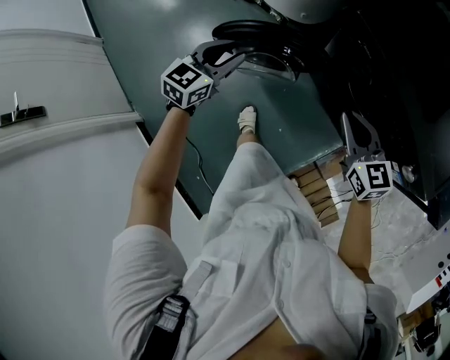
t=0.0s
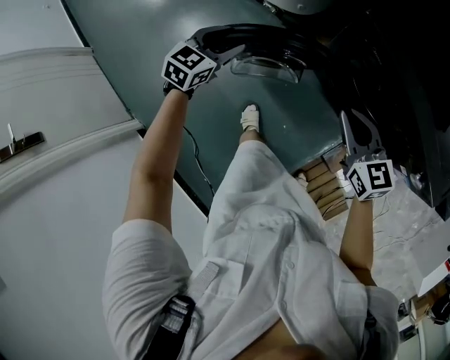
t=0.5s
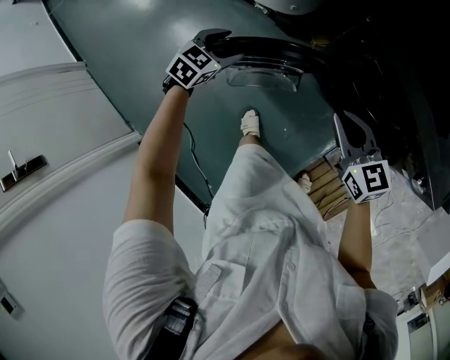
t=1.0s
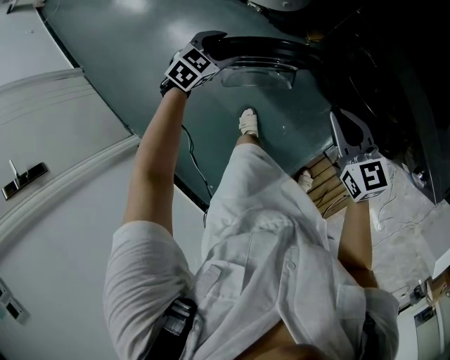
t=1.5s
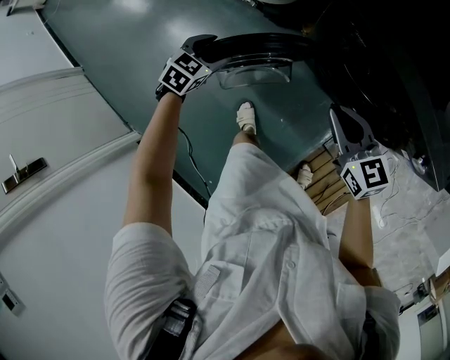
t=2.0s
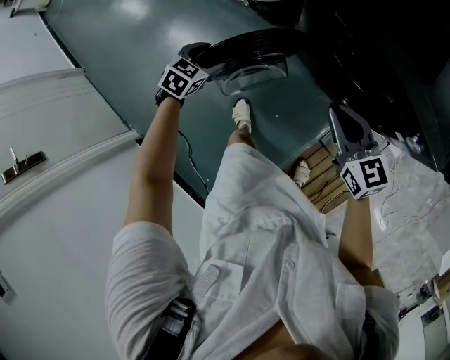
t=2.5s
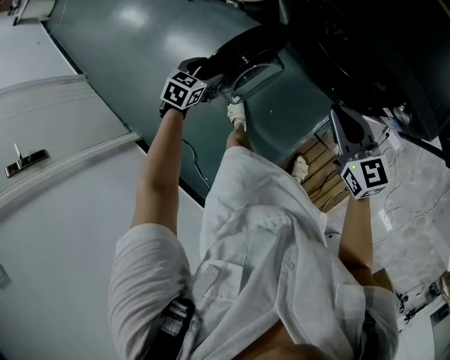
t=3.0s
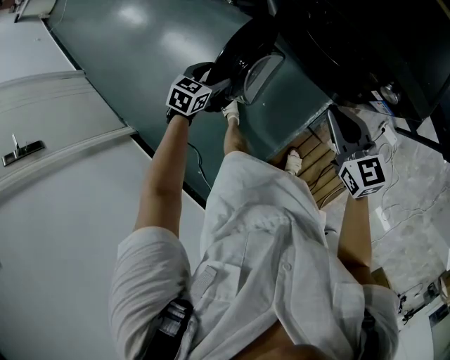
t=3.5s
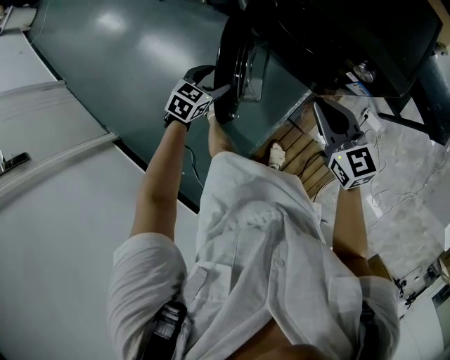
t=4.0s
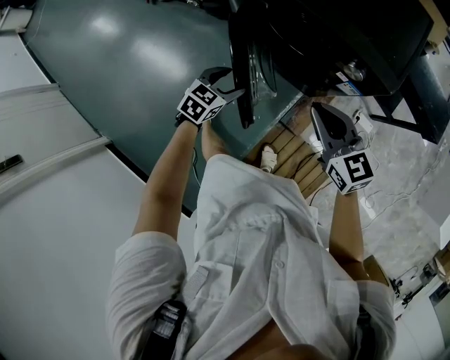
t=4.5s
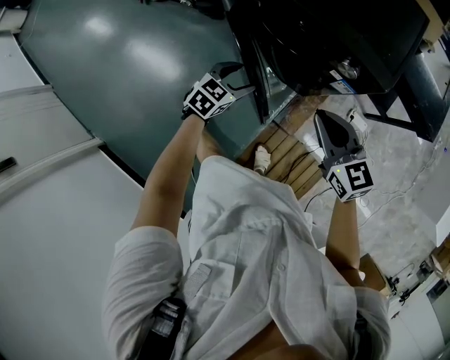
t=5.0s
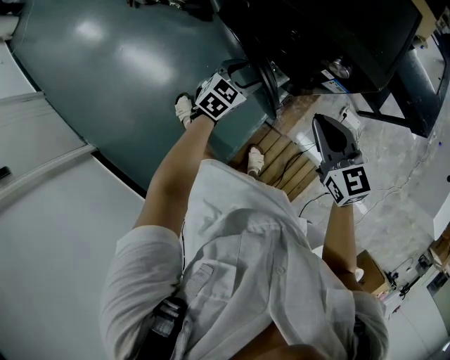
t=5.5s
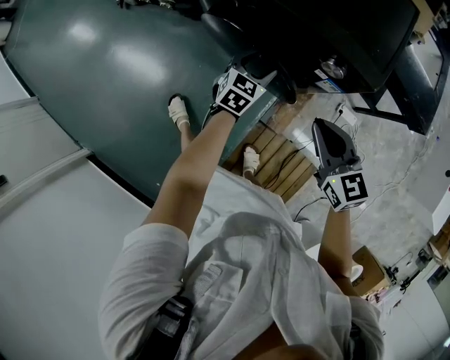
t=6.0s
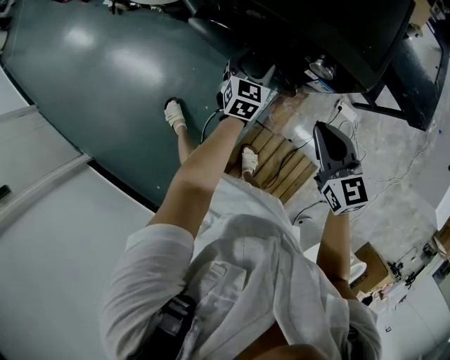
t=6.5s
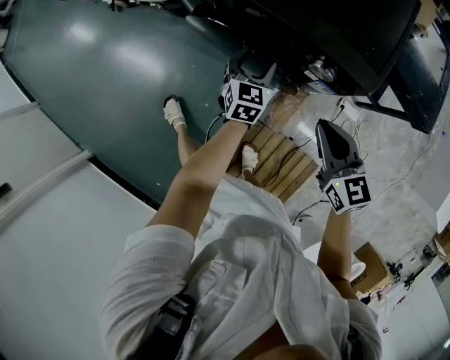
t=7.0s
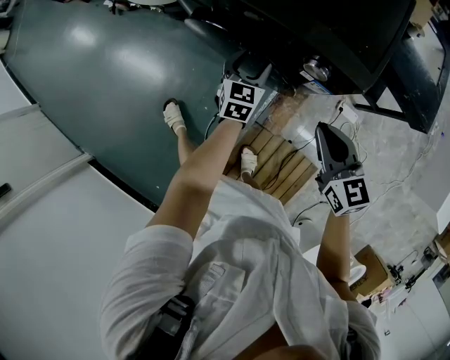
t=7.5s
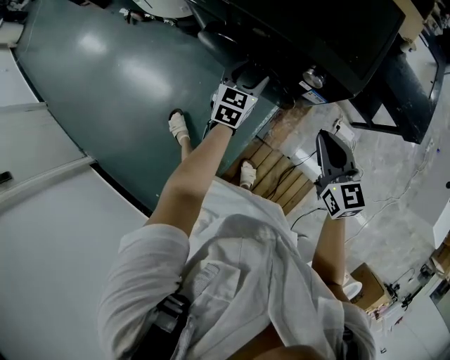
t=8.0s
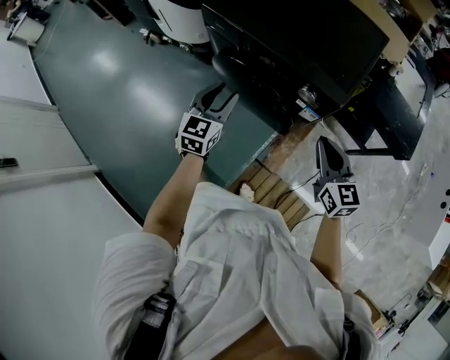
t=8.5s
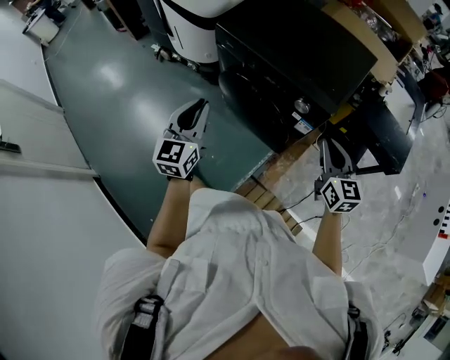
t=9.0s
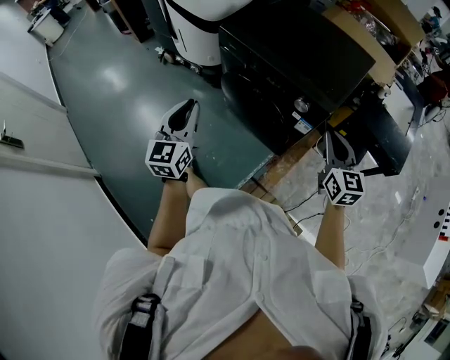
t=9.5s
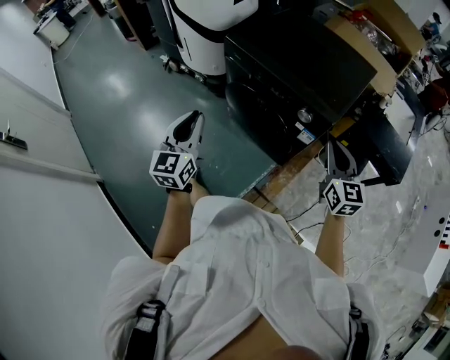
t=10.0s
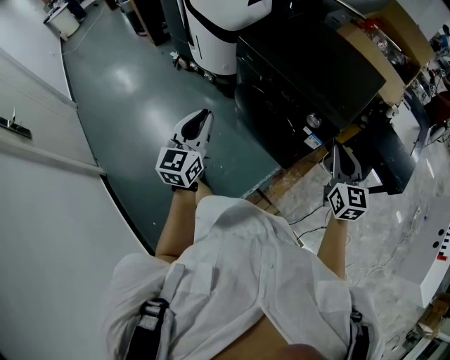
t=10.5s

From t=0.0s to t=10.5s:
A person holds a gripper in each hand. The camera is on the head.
From t=0.0s to t=2.0s: The left gripper moves downward and forward, some 15 cm, turns by about 30 degrees, and opens.
From t=2.0s to t=4.0s: Both grippers move to the right and backward, approximately 30 cm.
From t=4.0s to t=6.5s: The right gripper is displaced to the right by approximately 15 cm. The left gripper moves to the right and forward, about 30 cm, and rotates about 20 degrees.
From t=6.5s to t=8.5s: The left gripper is displaced upward, to the left and backward by some 25 cm, and closes its fingers; the right gripper is displaced upward by some 5 cm.
From t=8.5s to t=10.5s: The right gripper moves upward, about 10 cm; the left gripper moves upward, backward and to the left, about 20 cm, changes its angle by about 20 degrees, and closes its fingers.

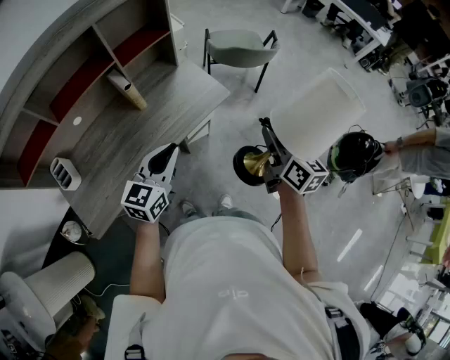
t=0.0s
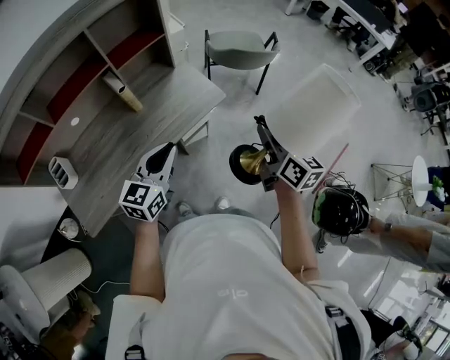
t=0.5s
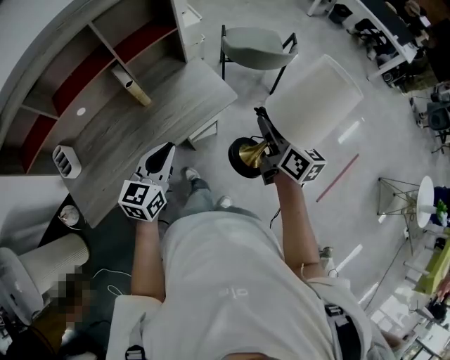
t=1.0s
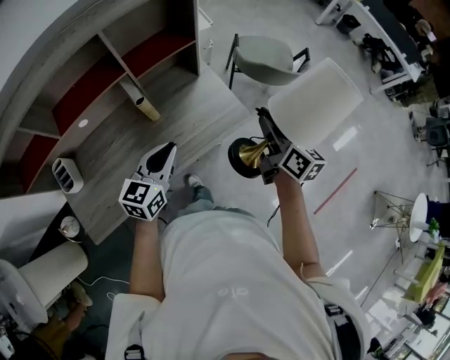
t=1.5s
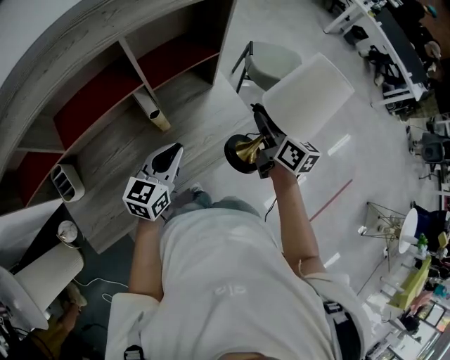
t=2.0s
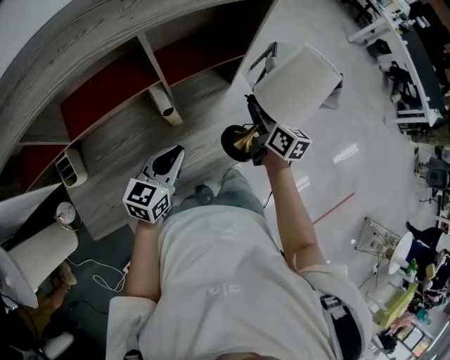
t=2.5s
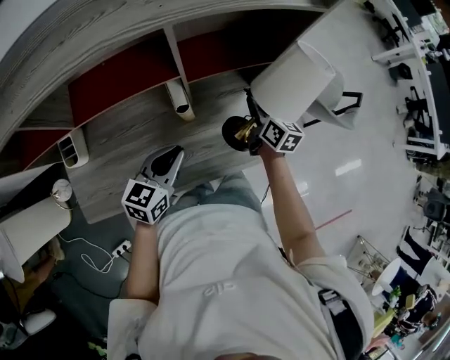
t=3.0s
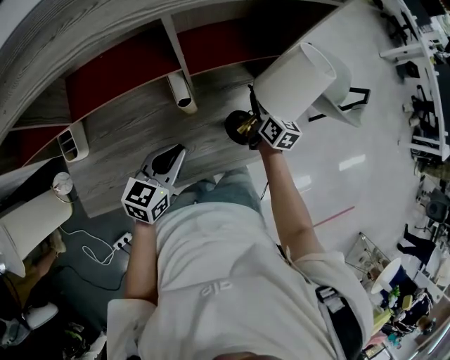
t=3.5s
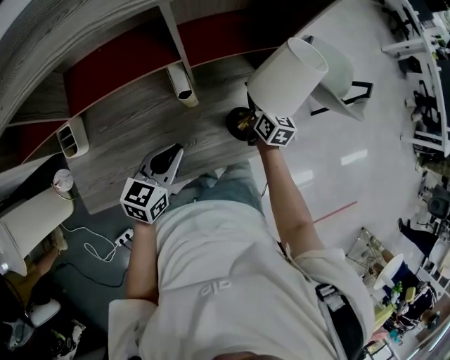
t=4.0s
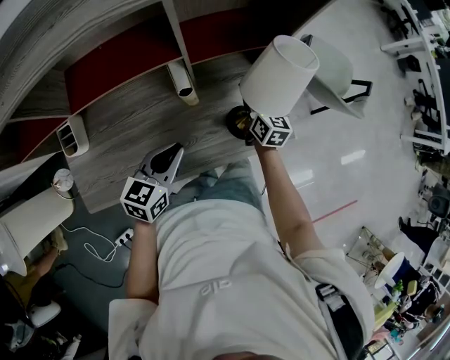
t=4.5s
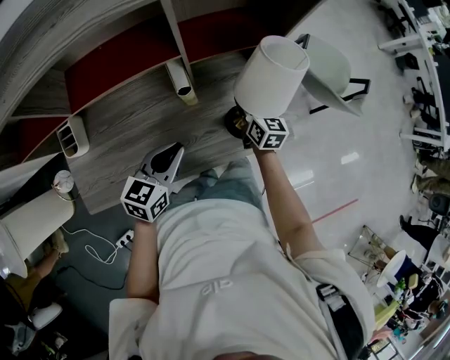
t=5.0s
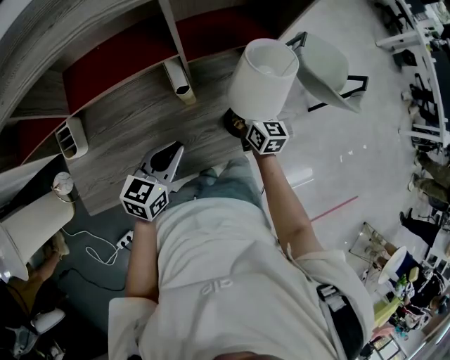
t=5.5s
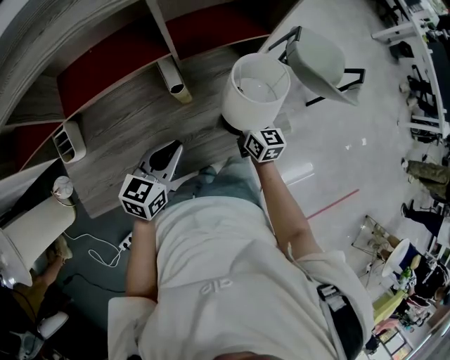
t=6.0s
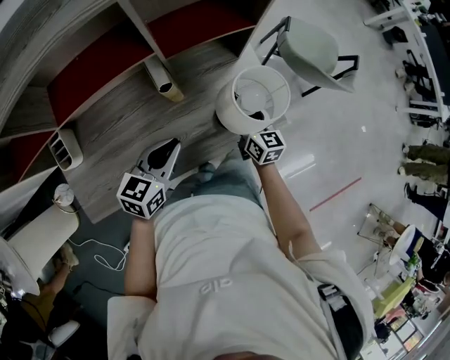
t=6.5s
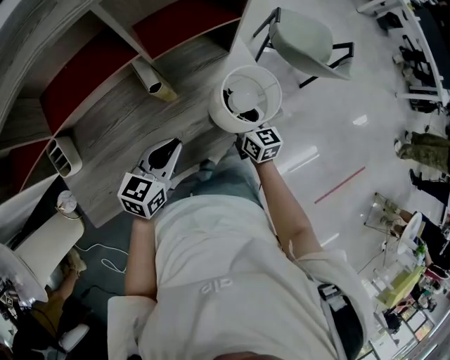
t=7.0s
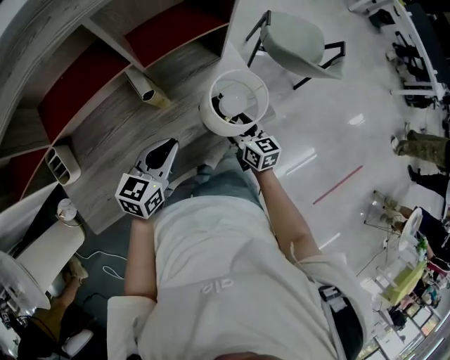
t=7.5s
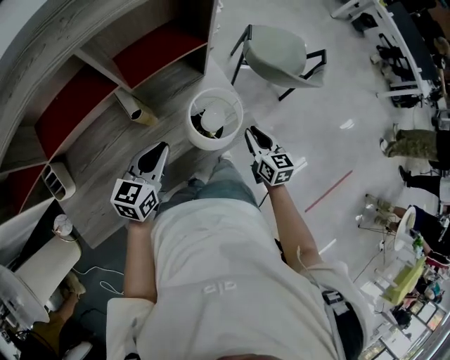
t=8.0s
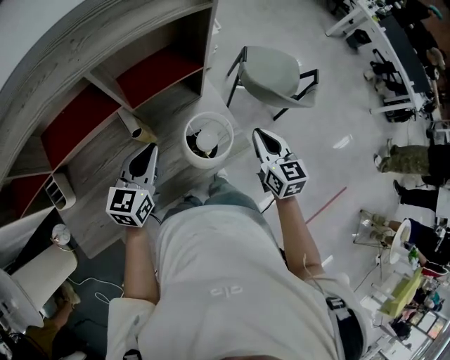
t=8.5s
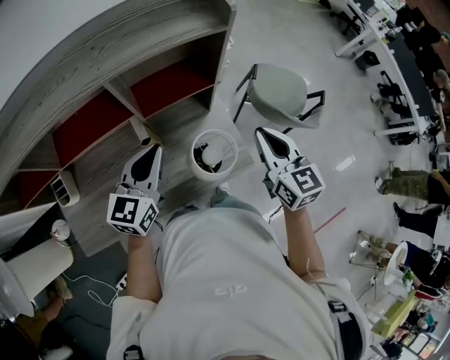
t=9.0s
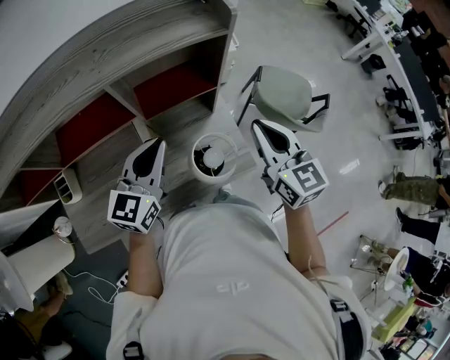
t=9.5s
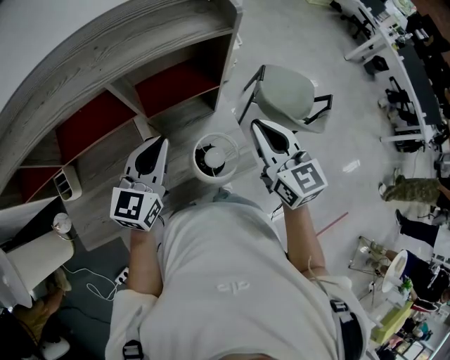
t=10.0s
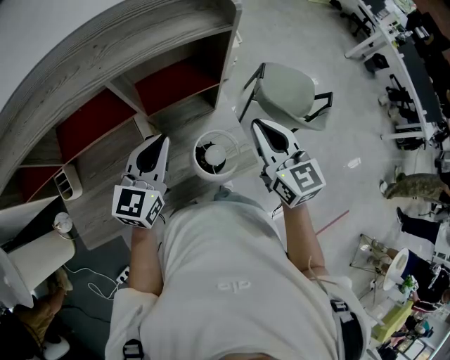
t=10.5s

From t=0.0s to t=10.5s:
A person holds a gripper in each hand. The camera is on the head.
From t=0.0s to t=2.0s: Both grippers travel together forward and to the left, approximately 30 cm.
From t=2.0s to t=4.0s: The right gripper heads downward, forward and to the left, covering roughly 25 cm; the left gripper shifts roughly 10 cm downward and to the left.
From t=4.0s to t=6.5s: The right gripper goes roughly 10 cm backward, and opens its fingers.
From t=6.5s to t=8.5s: The right gripper moves upward and to the right, some 25 cm, and closes up, while the left gripper heads upward and forward, covering roughly 15 cm.
From t=8.5s to t=10.5s: The left gripper shifts roughly 10 cm upward. Meanwhile the right gripper travels upward, to the left and forward by roughly 15 cm.

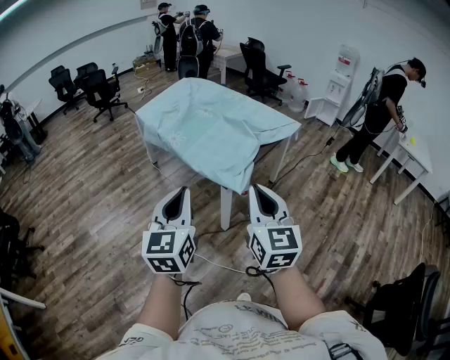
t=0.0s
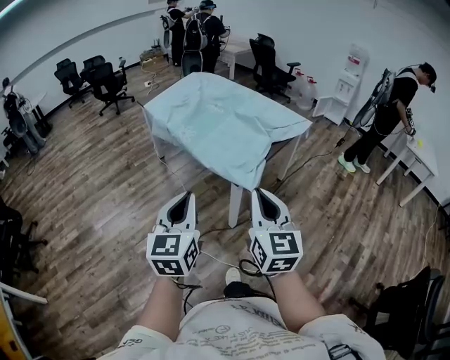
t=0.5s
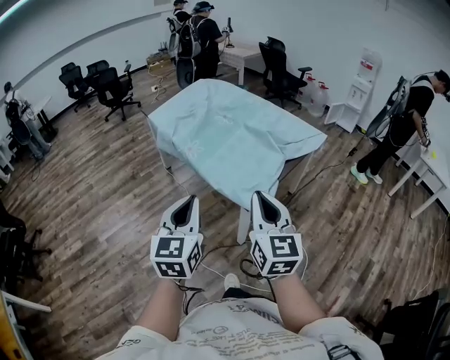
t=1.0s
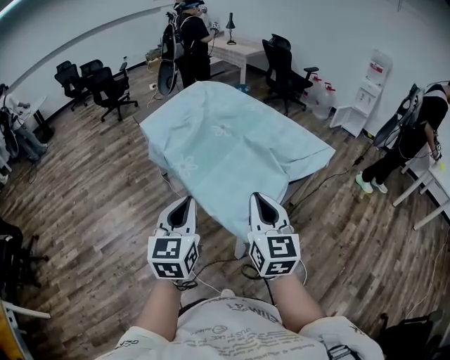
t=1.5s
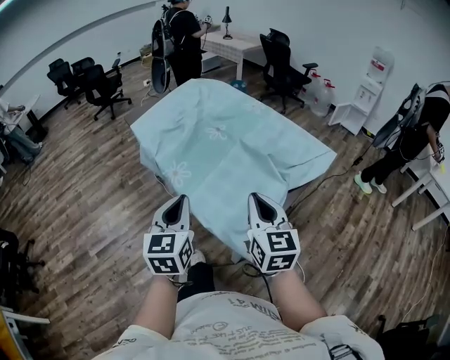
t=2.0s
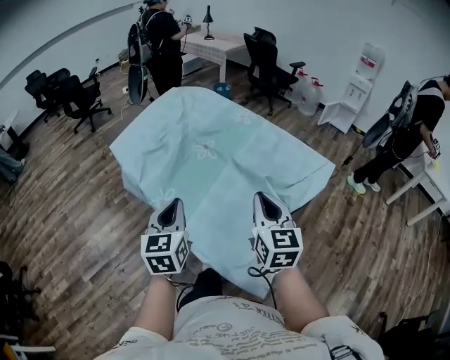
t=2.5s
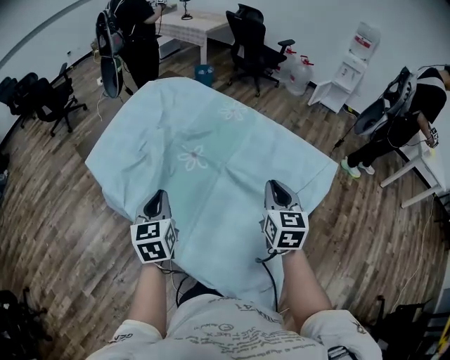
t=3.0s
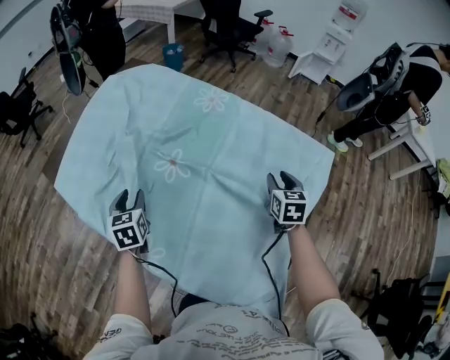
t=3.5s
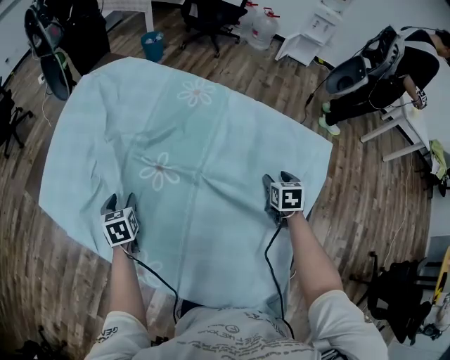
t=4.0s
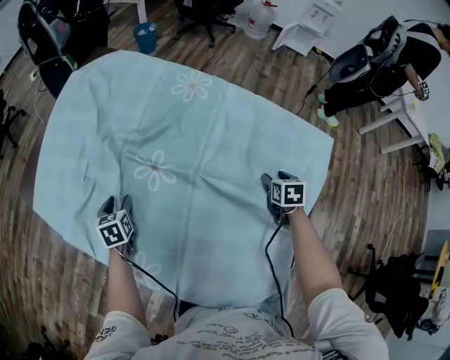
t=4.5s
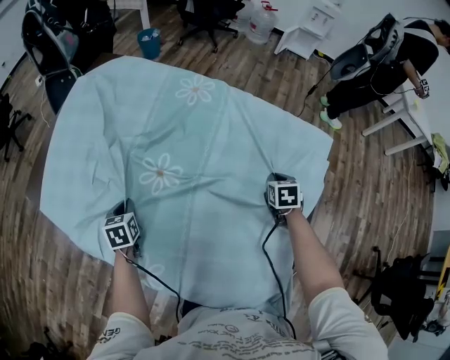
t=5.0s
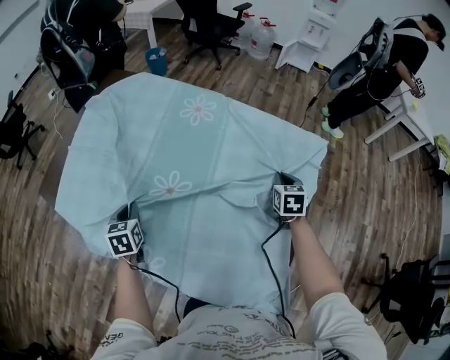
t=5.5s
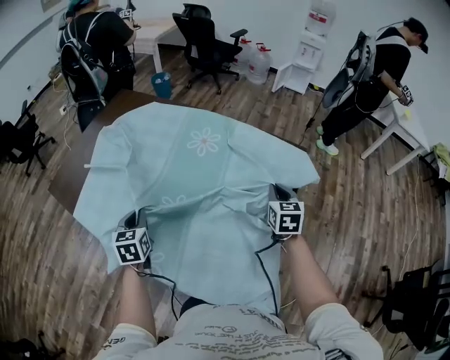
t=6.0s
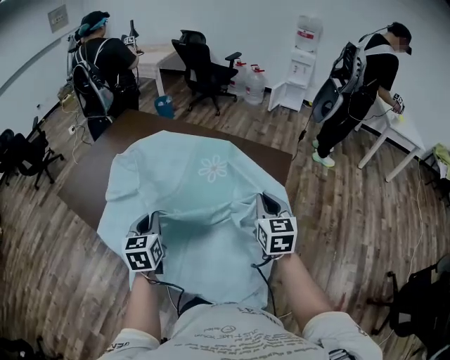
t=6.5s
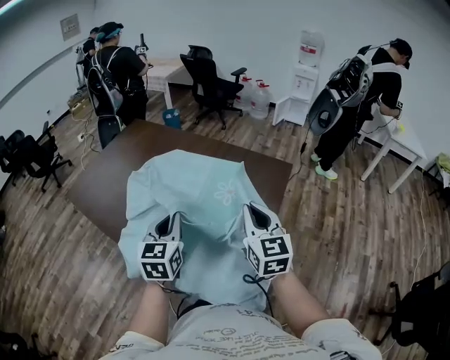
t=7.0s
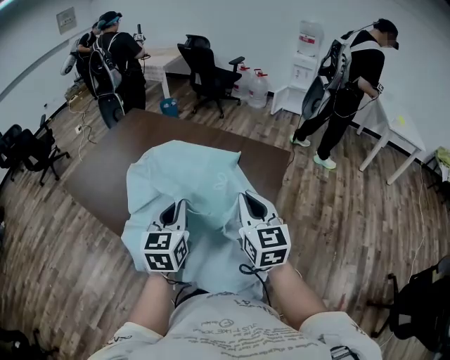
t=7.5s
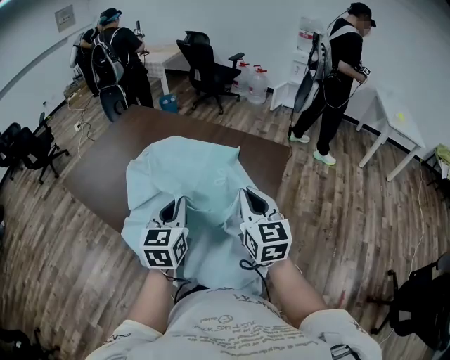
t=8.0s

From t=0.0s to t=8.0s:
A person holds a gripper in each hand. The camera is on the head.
From t=0.0s to t=2.0s: The two grippers go about 40 cm forward.
From t=2.0s to t=4.0s: Both grippers move forward and downward, approximately 60 cm. The left gripper tilts its fingers roughly 40 degrees downward, and opens up; the right gripper points its fingers roughly 40 degrees further downward, and opens its fingers.
From t=4.0s to t=6.0s: The right gripper travels upward and backward by approximately 15 cm, turns by approximately 20 degrees, and closes, while the left gripper heads upward, to the right and backward, covering roughly 20 cm, and closes.
From t=6.0s to t=8.0s: The left gripper travels to the right, upward and backward by some 30 cm, and changes its angle by approximately 20 degrees. Meanwhile the right gripper moves backward and upward, some 25 cm, and changes its angle by about 30 degrees.
